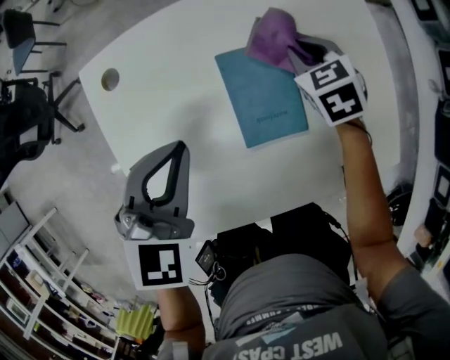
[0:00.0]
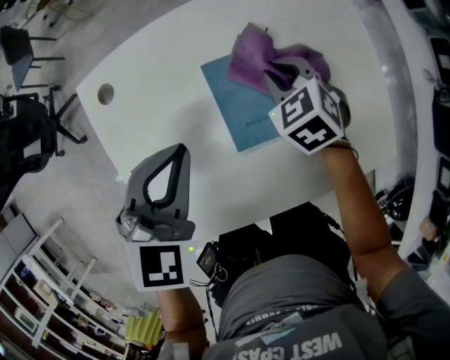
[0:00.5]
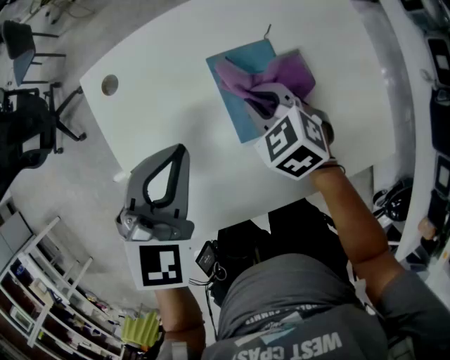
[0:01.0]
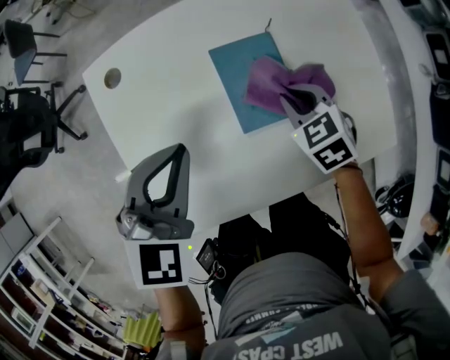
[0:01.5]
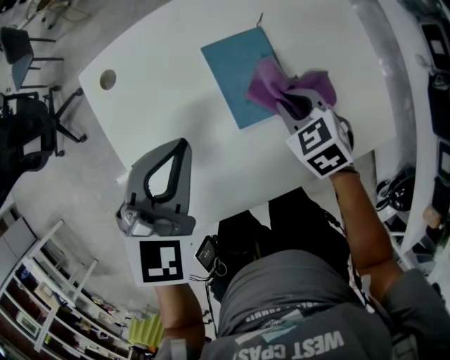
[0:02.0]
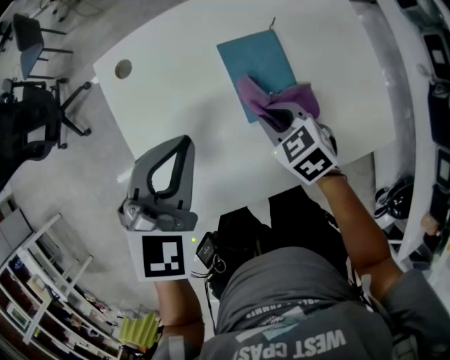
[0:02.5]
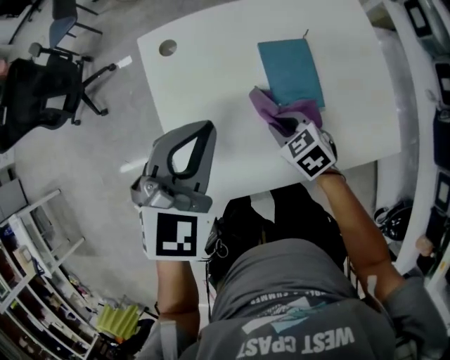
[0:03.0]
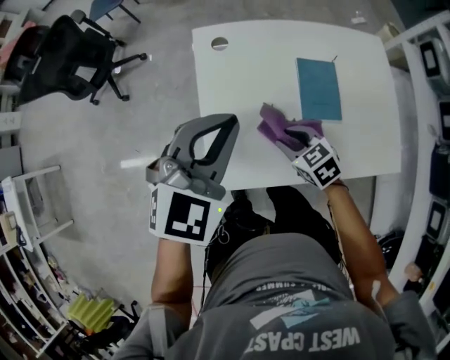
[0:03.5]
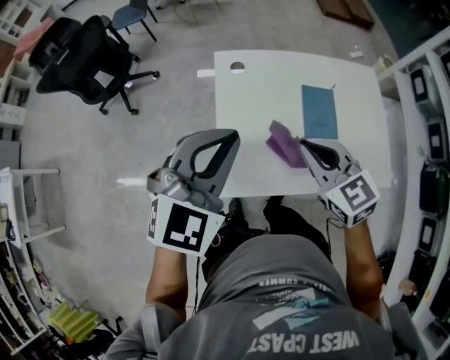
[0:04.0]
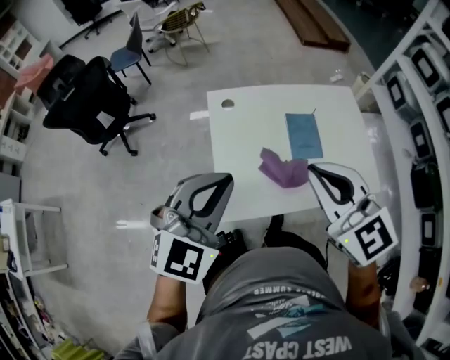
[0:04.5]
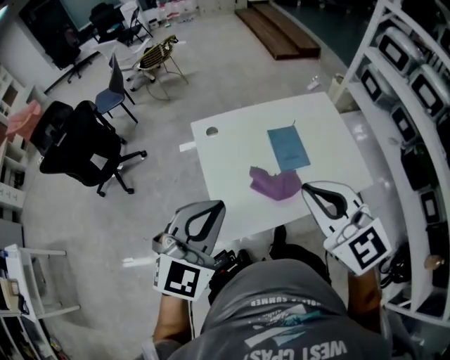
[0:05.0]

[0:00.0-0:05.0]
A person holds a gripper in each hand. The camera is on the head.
0:00.0 to 0:02.5: The right gripper travels backward and to the left by approximately 20 cm. The left gripper changes place by some 5 cm.
0:02.5 to 0:05.0: The right gripper travels upward and backward by roughly 50 cm, and tips its fingers upward by about 40 degrees. The left gripper heads upward, backward and to the left, covering about 30 cm, and turns by about 20 degrees.

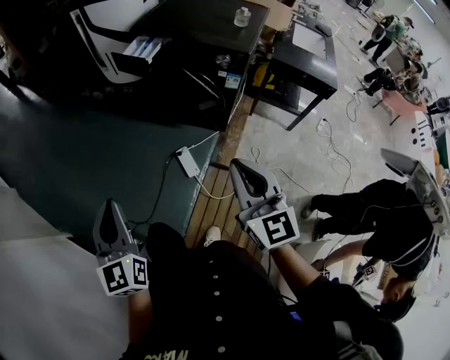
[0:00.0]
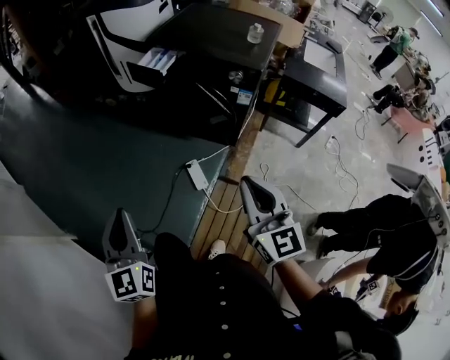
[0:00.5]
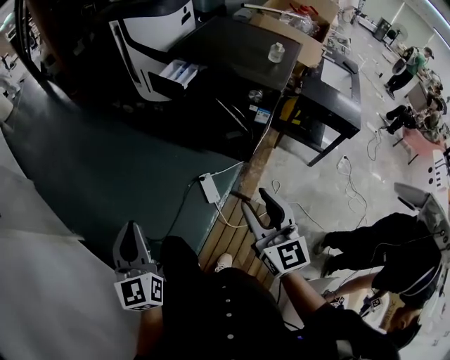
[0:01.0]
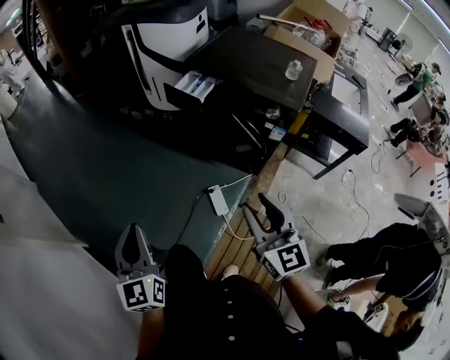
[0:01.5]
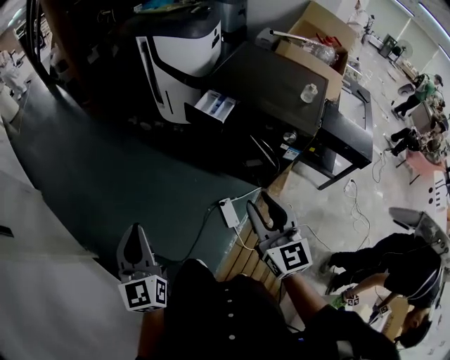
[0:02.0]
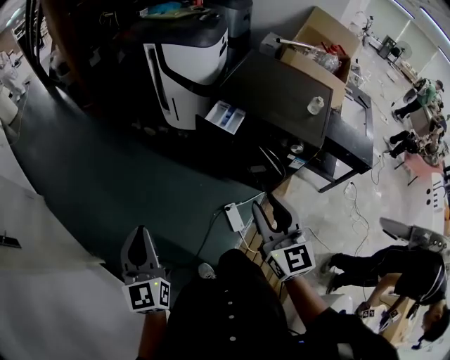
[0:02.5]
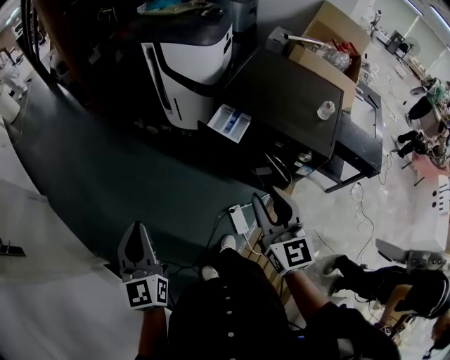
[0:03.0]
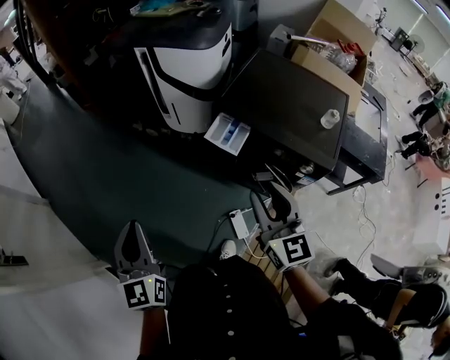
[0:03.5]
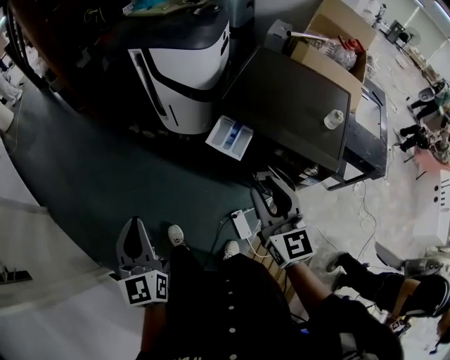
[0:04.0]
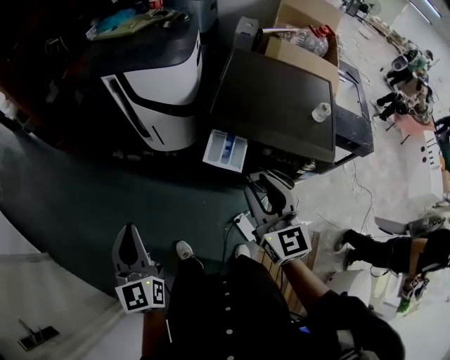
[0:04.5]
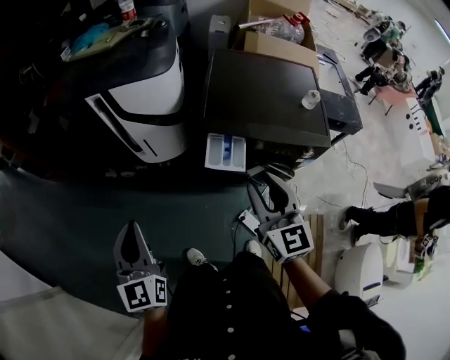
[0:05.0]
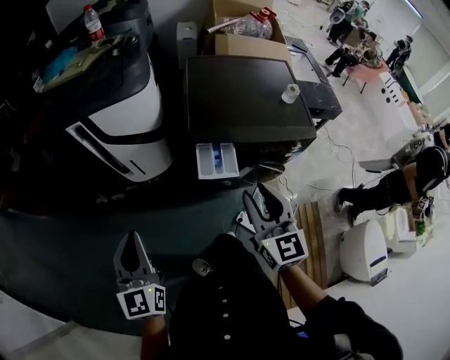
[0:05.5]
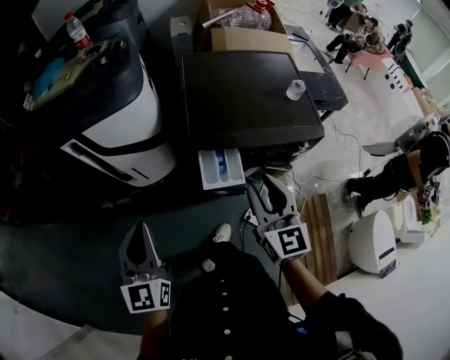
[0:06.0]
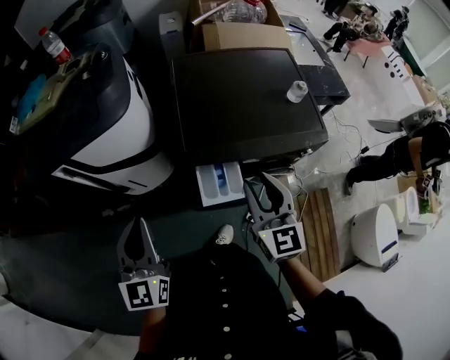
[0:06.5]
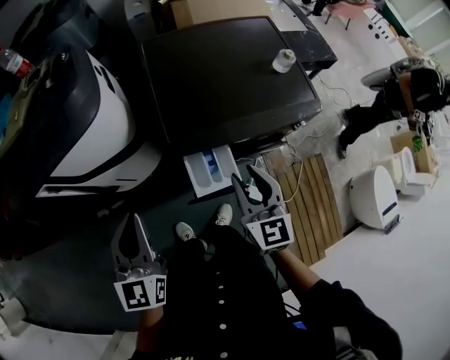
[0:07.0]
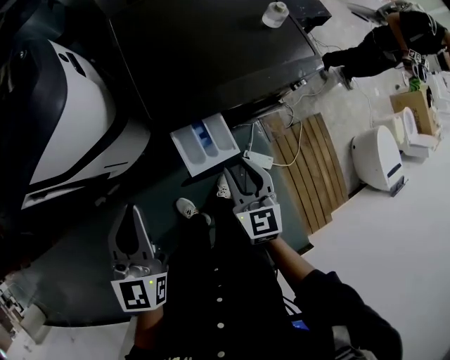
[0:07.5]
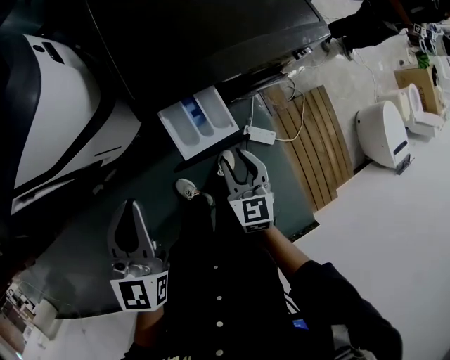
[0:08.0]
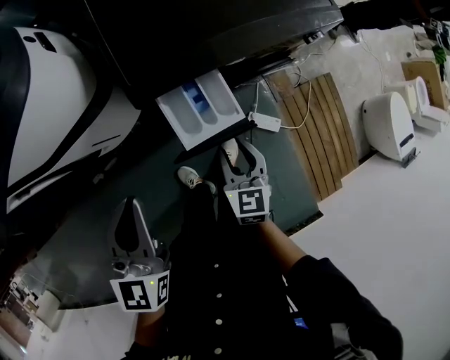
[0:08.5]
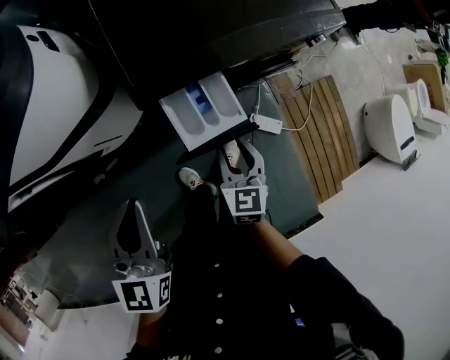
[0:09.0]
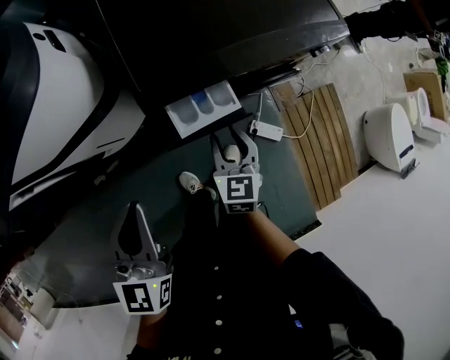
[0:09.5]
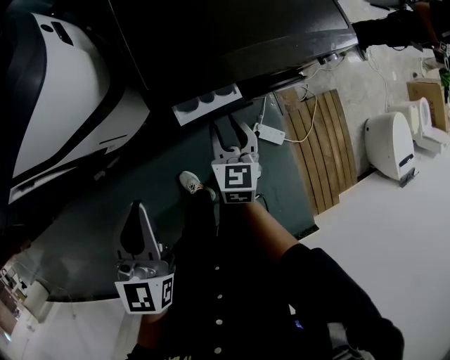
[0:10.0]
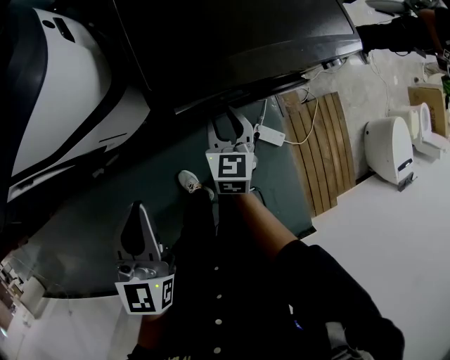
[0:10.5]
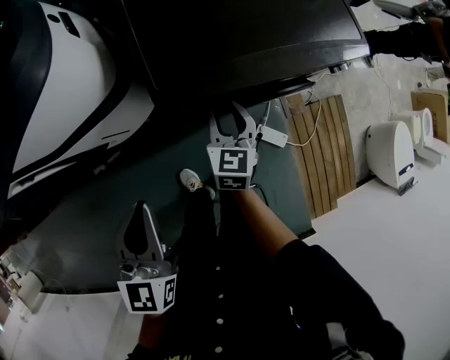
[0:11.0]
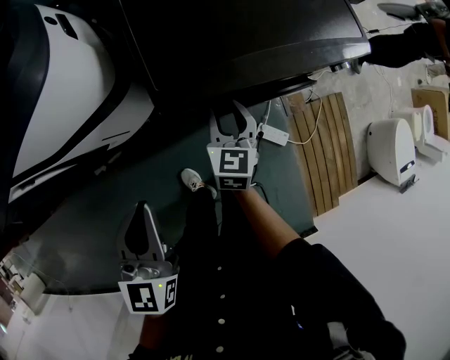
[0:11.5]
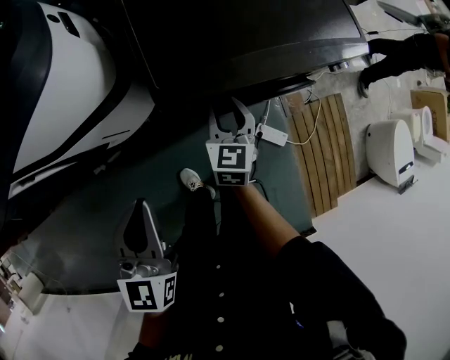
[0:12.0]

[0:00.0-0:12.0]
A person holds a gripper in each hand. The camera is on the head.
0:00.0 to 0:02.0: The left gripper shifts approximately 20 cm forward, to the left and upward; the right gripper moves forward and to the left, roughly 20 cm, and opens up.
0:02.0 to 0:04.0: Both grippers move forward, about 25 cm.
0:04.0 to 0:06.0: The left gripper shifts by roughly 25 cm, and turns by some 40 degrees. Meanwhile the right gripper moves approximately 15 cm, and turns by approximately 40 degrees.
0:06.0 to 0:08.0: The right gripper shifts about 25 cm downward, and turns by approximately 30 degrees. The left gripper is displaced forward, downward and to the right by about 15 cm, and turns by some 30 degrees.
0:08.0 to 0:10.0: The right gripper moves forward, about 10 cm.
0:10.0 to 0:12.0: The right gripper shifts approximately 5 cm forward.

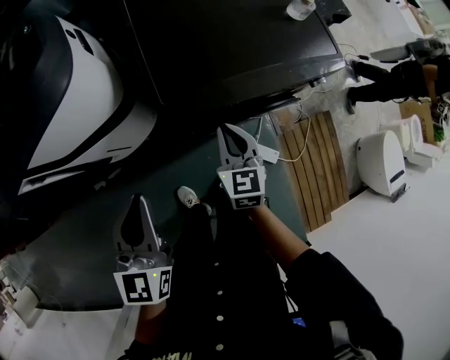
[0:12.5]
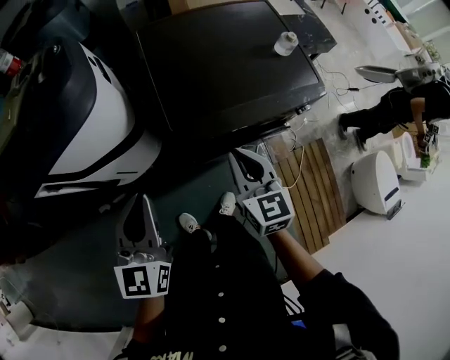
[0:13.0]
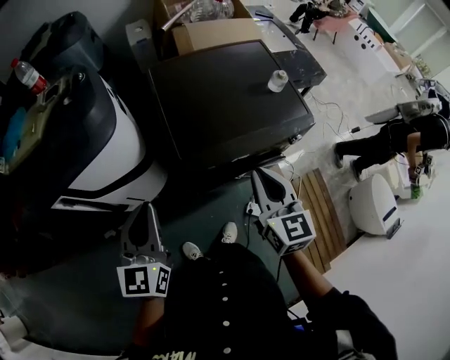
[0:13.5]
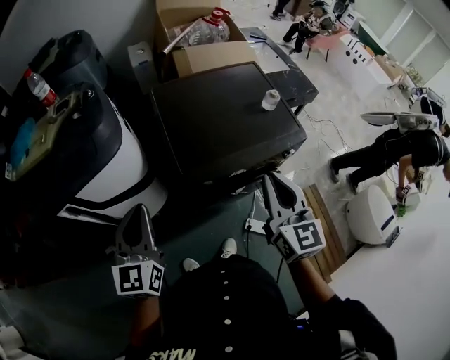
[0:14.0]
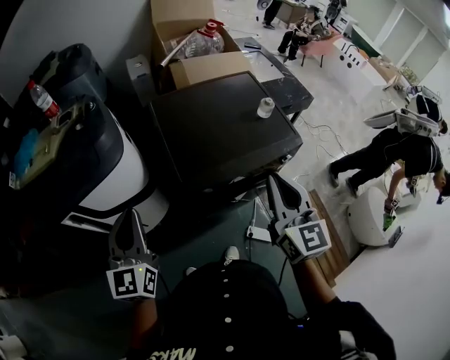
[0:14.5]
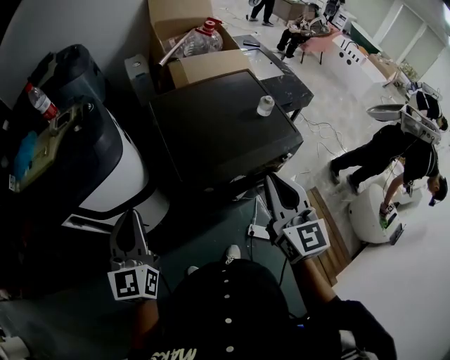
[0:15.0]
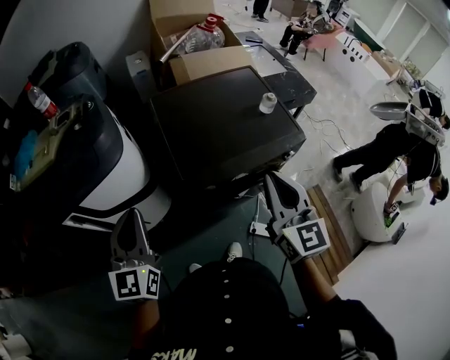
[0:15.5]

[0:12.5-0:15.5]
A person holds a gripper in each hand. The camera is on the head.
0:12.5 to 0:14.0: The left gripper is displaced upward by about 10 cm. The right gripper moves upward, roughly 25 cm, and rotates approximately 20 degrees.
0:14.0 to 0:15.5: The grippers move only a little.

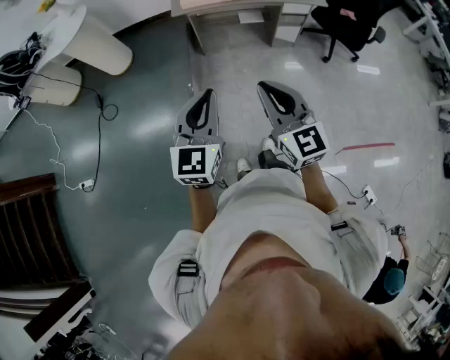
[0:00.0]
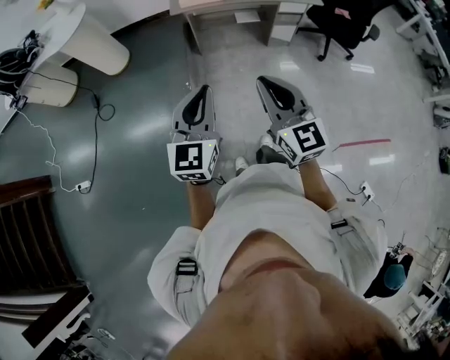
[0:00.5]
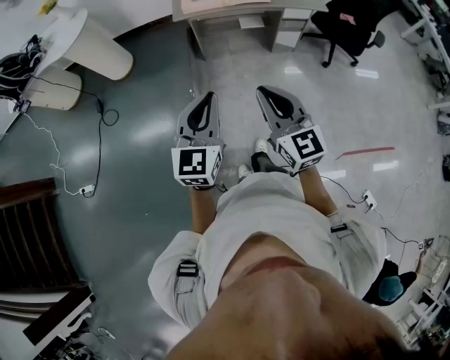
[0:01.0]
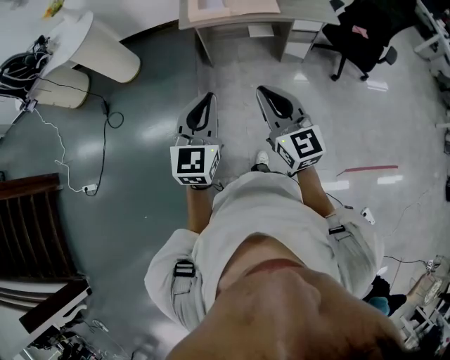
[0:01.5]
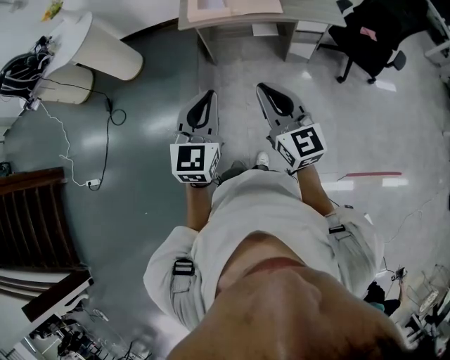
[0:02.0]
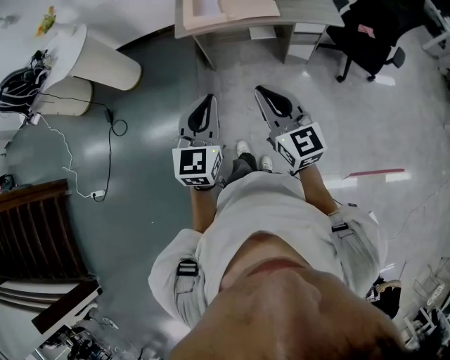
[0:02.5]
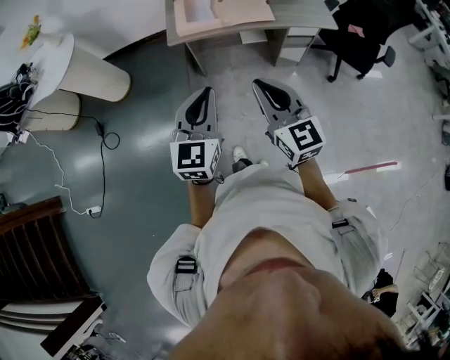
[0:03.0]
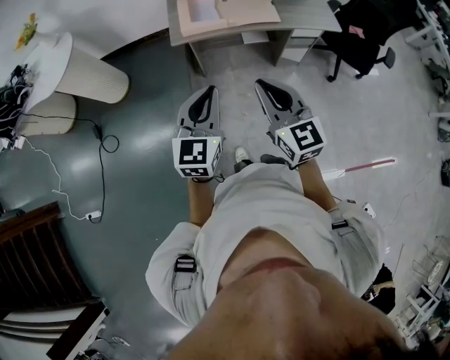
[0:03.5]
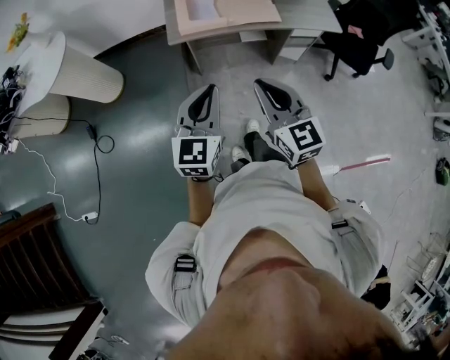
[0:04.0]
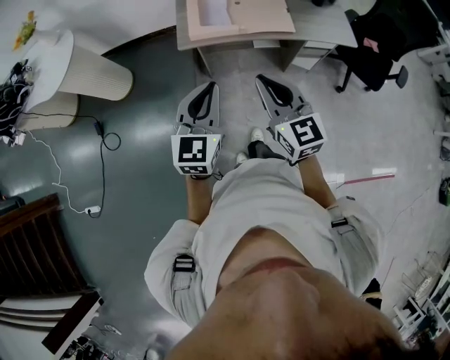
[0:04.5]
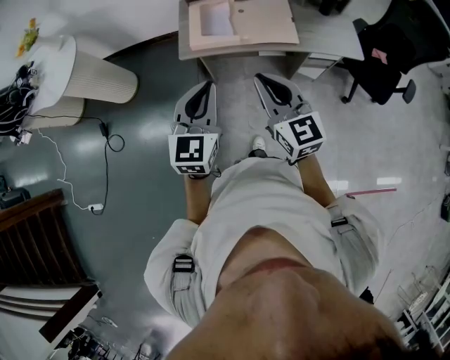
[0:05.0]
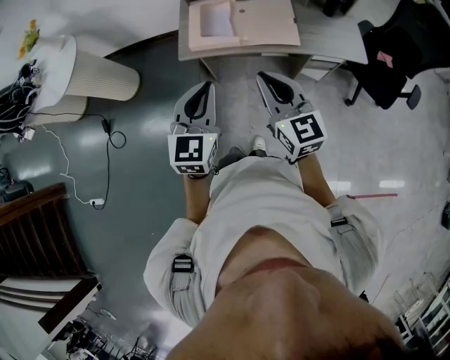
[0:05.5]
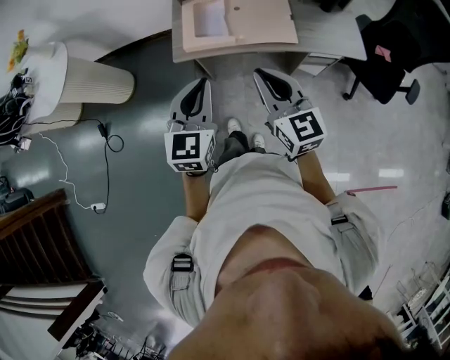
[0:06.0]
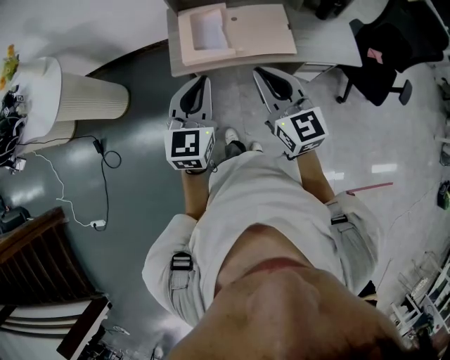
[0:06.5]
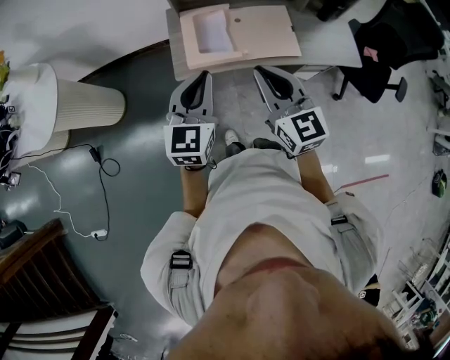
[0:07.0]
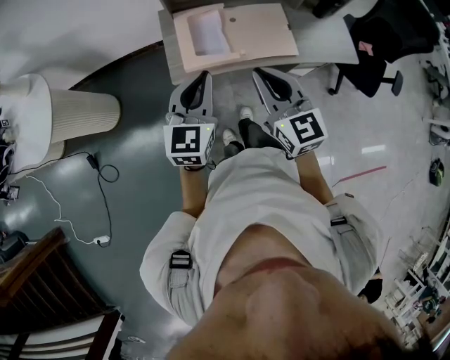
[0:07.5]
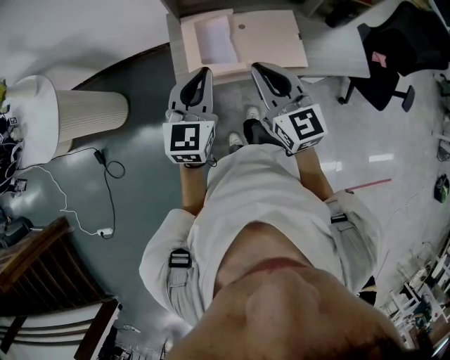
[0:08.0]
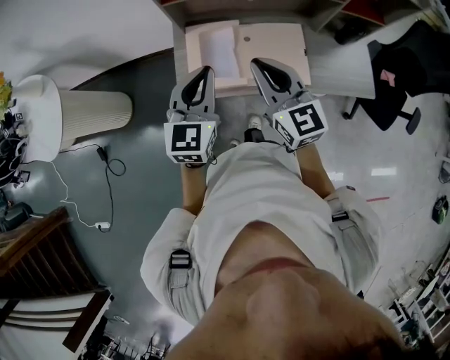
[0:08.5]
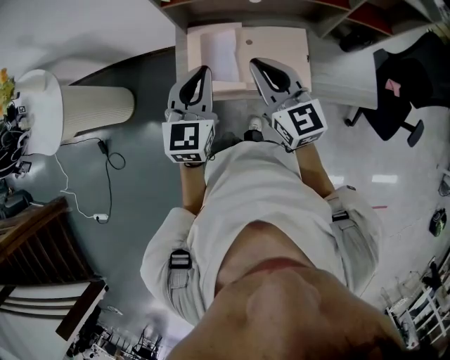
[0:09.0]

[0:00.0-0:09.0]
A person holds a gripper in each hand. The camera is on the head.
0:00.0 to 0:02.0: The grippers both shift forward and to the right by some 15 cm.
0:02.0 to 0:04.5: The two grippers go roughly 25 cm forward.
0:04.5 to 0:07.0: The two grippers go about 25 cm forward.
0:07.0 to 0:09.0: The left gripper moves forward and to the right, approximately 20 cm; the right gripper shifts some 20 cm forward.
